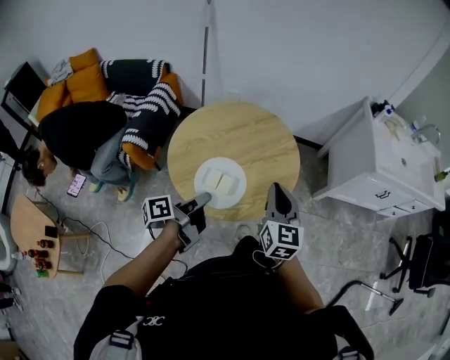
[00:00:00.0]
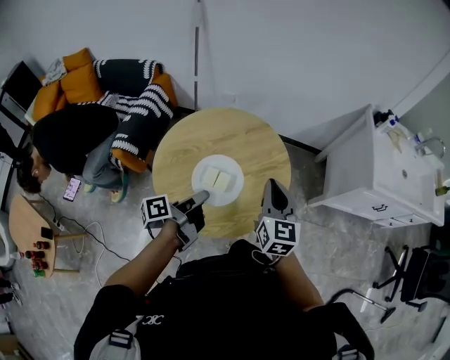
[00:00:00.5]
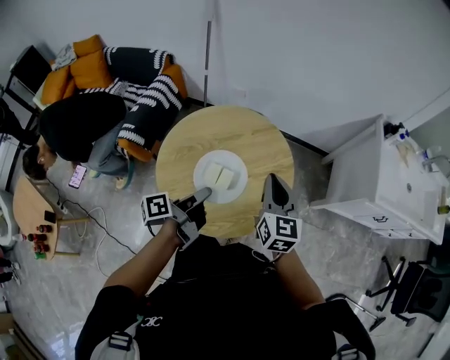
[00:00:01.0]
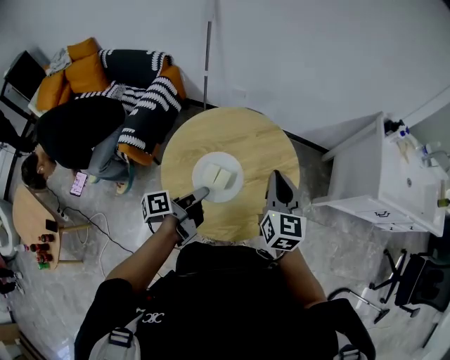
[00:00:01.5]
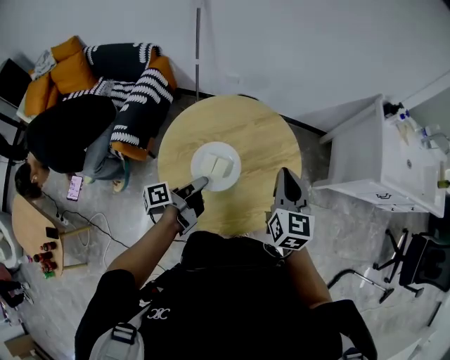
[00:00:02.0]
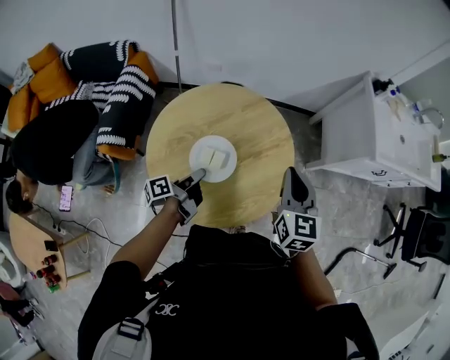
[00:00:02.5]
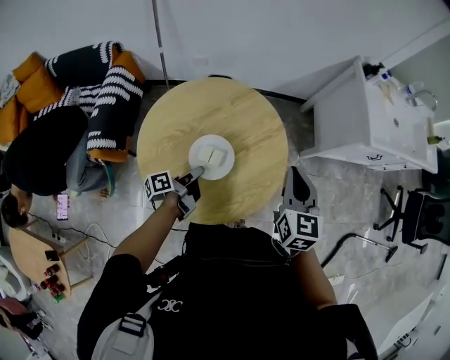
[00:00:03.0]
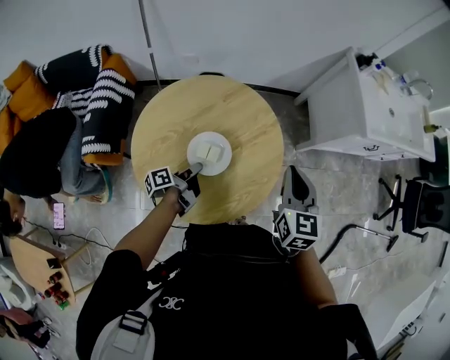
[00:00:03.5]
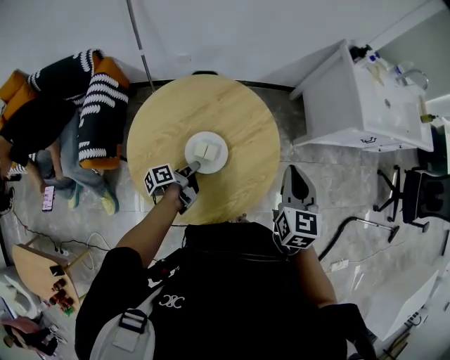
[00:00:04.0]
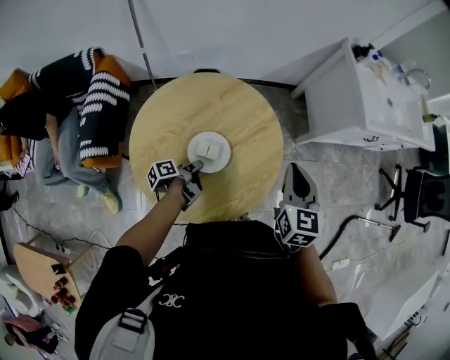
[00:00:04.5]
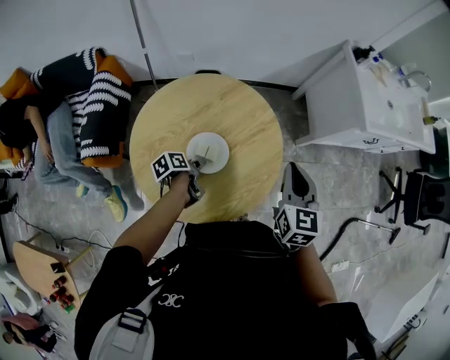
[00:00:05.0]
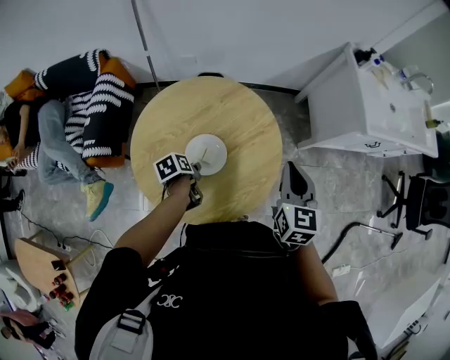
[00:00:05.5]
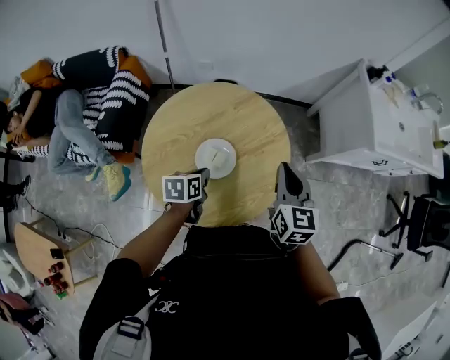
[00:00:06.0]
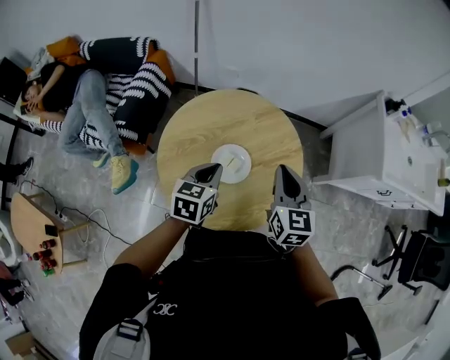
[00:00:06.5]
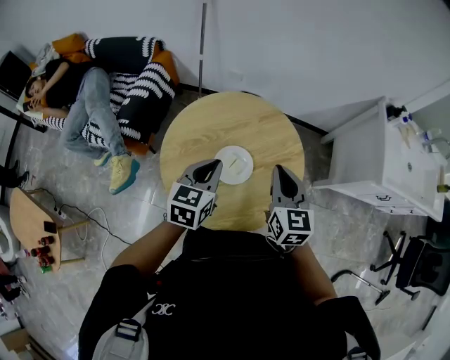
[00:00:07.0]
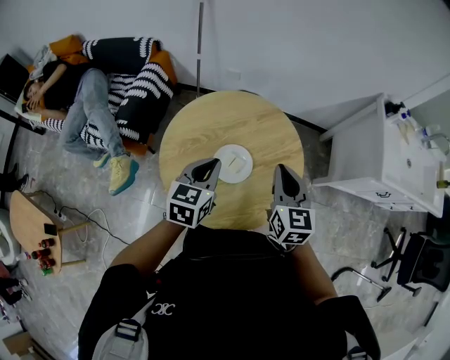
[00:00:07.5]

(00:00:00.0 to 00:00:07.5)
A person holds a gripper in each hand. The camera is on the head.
00:00:00.0 - 00:00:02.0: The right gripper ends up some 15 cm from where it was.
00:00:02.0 - 00:00:04.0: The right gripper changes place by roughly 10 cm.
00:00:05.5 - 00:00:07.5: The right gripper ends up roughly 10 cm from where it was.

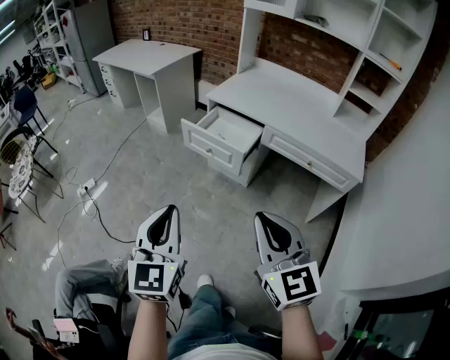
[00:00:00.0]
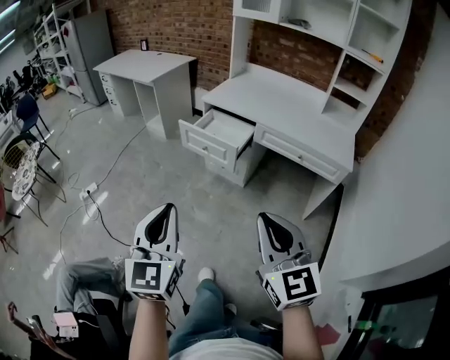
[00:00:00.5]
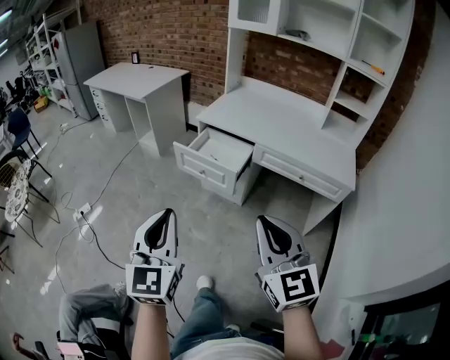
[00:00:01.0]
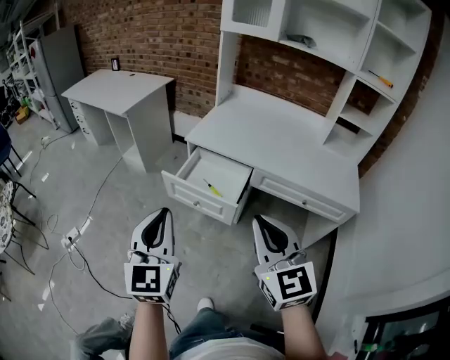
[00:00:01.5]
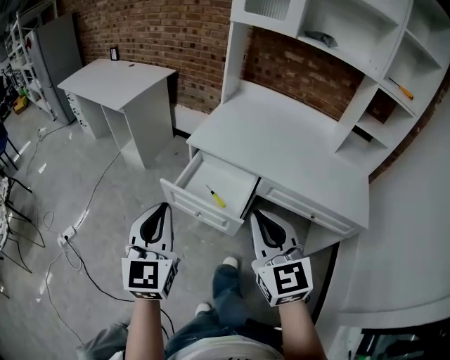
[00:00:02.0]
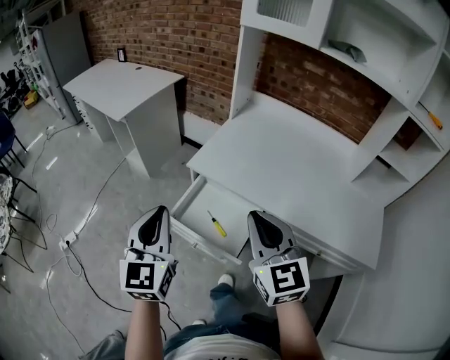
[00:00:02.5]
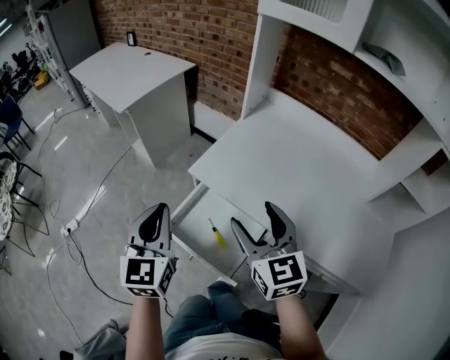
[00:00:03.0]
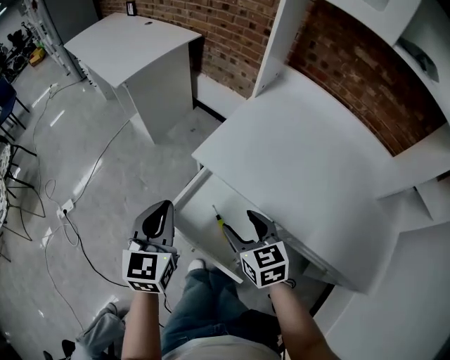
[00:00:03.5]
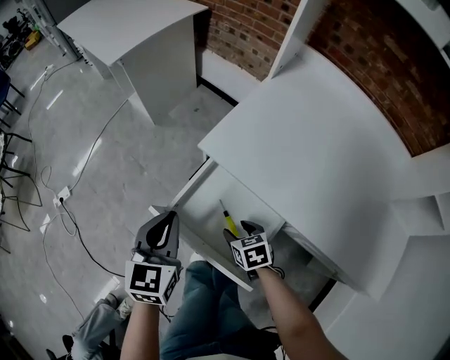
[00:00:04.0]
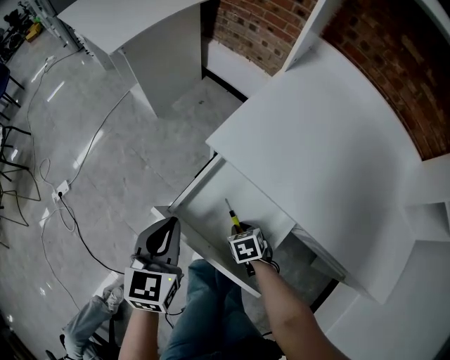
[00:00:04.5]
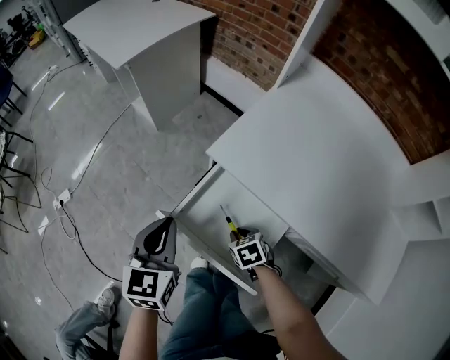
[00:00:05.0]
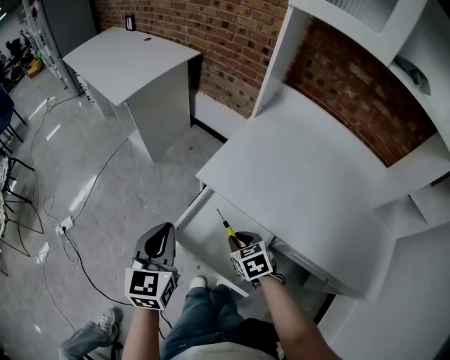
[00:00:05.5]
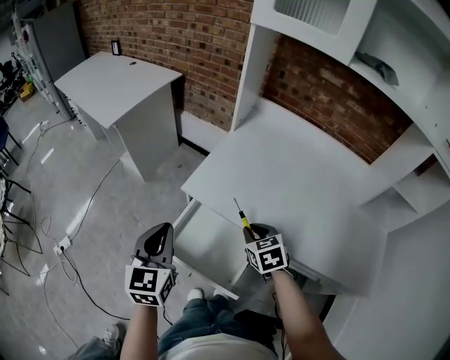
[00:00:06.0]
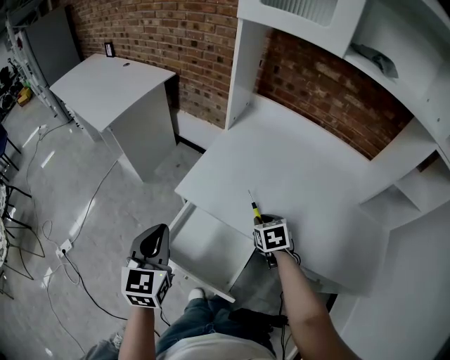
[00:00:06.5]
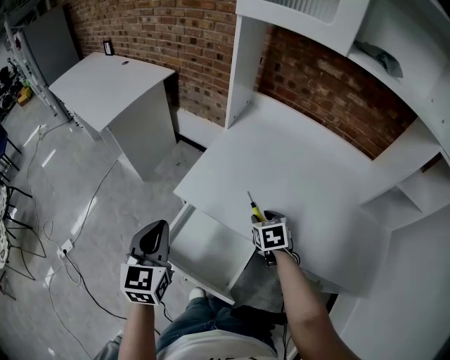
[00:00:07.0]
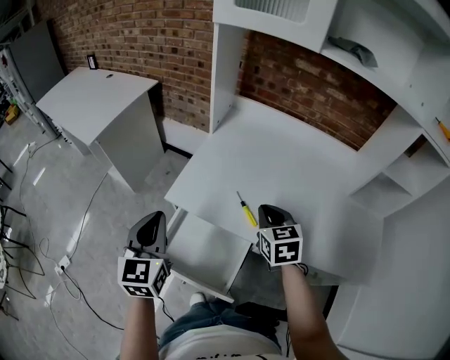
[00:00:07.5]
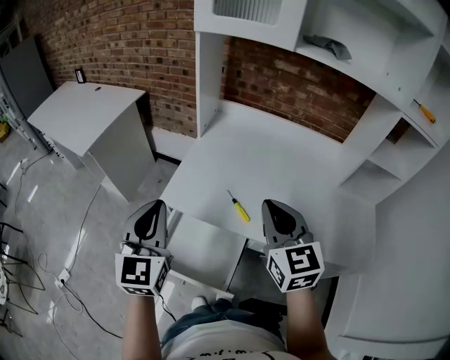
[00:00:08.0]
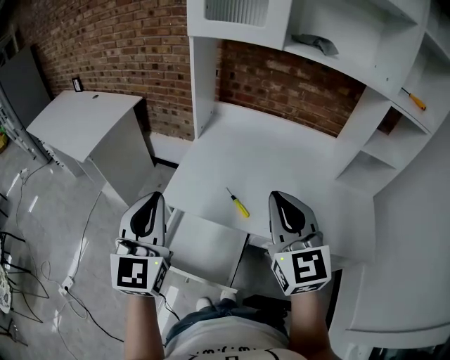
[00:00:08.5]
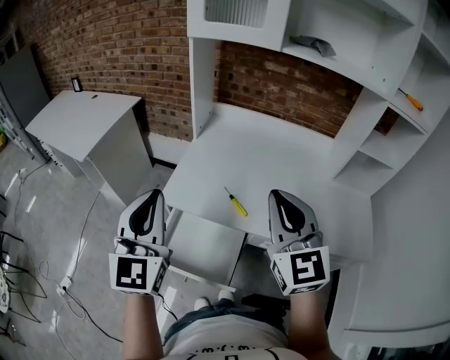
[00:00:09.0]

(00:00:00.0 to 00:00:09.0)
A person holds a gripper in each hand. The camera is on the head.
00:00:00.0 - 00:00:02.0: Both grippers travel together forward, roughly 35 cm.
00:00:02.0 - 00:00:04.5: The left gripper travels forward and downward by about 35 cm, and changes its angle by approximately 30 degrees. Meanwhile the right gripper travels downward and forward by about 60 cm, tilts its fingers some 60 degrees downward, and opens, then closes once more.
00:00:04.5 - 00:00:07.0: The left gripper is displaced upward and to the right by approximately 15 cm. The right gripper travels upward, to the right and forward by roughly 30 cm, and rotates roughly 30 degrees.
00:00:07.0 - 00:00:09.0: The left gripper goes about 15 cm upward, and turns by roughly 30 degrees, while the right gripper travels upward and backward by roughly 35 cm, angles its fingers upward, by about 50 degrees, and closes up.

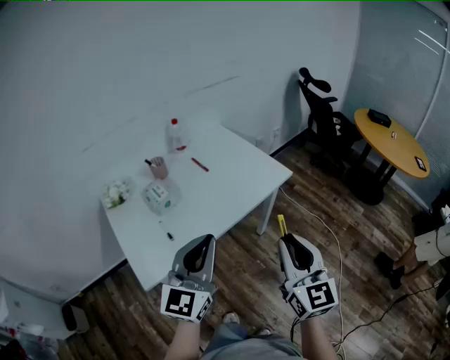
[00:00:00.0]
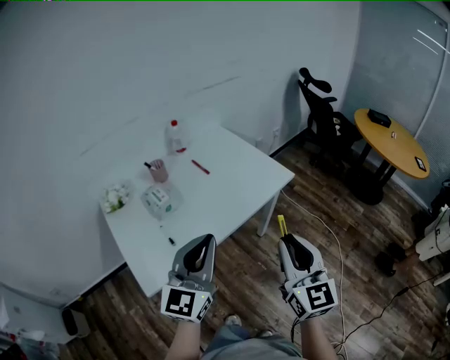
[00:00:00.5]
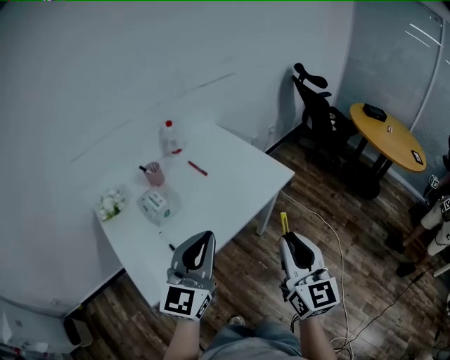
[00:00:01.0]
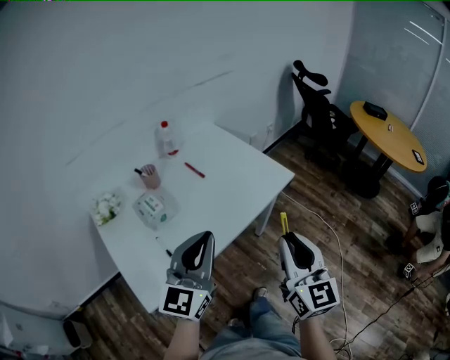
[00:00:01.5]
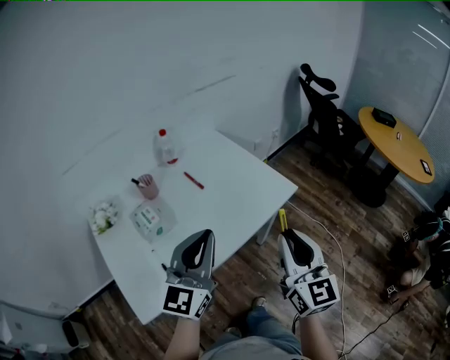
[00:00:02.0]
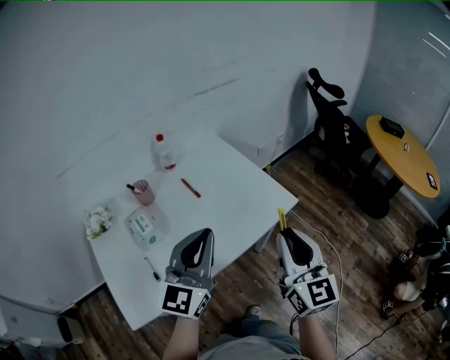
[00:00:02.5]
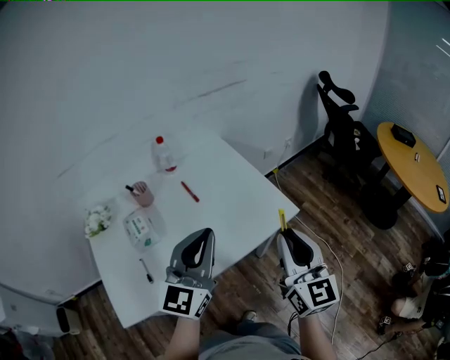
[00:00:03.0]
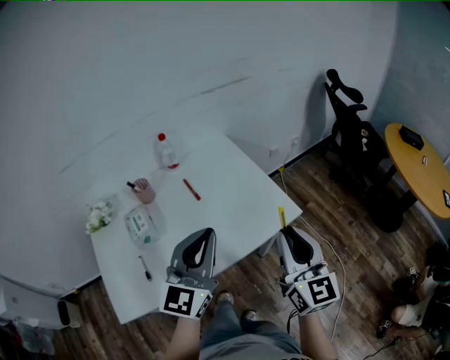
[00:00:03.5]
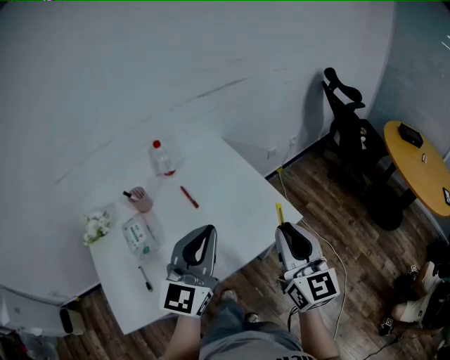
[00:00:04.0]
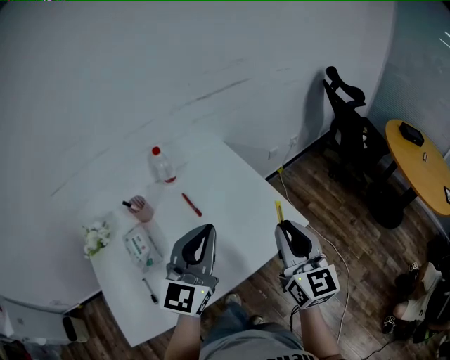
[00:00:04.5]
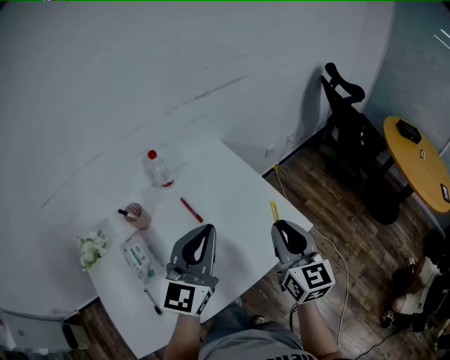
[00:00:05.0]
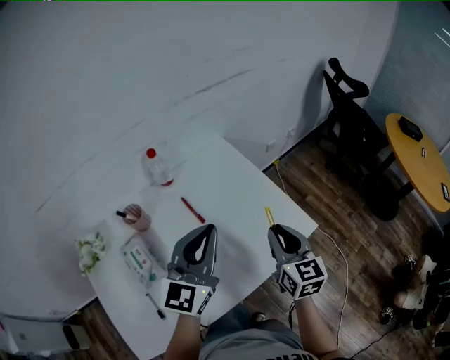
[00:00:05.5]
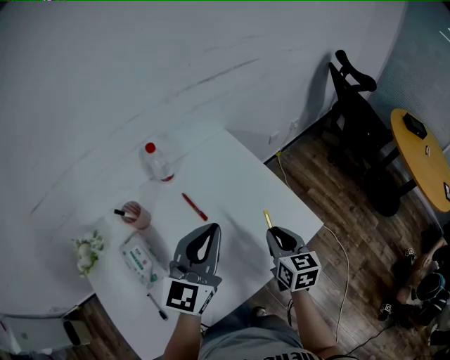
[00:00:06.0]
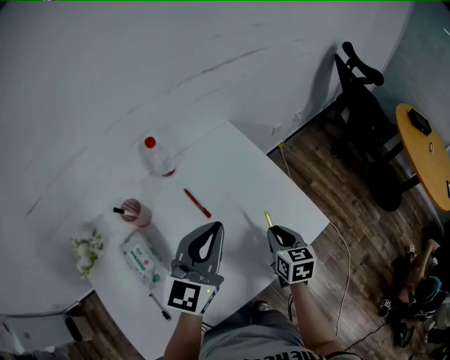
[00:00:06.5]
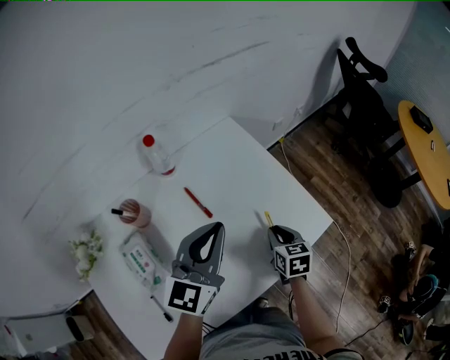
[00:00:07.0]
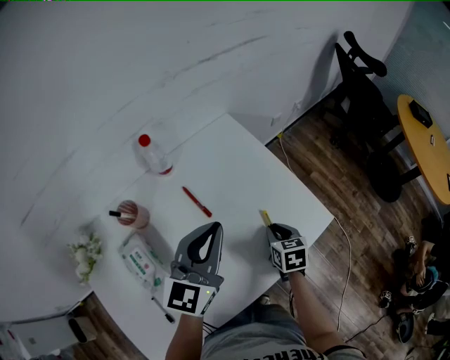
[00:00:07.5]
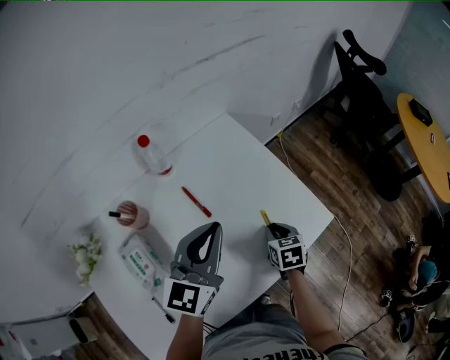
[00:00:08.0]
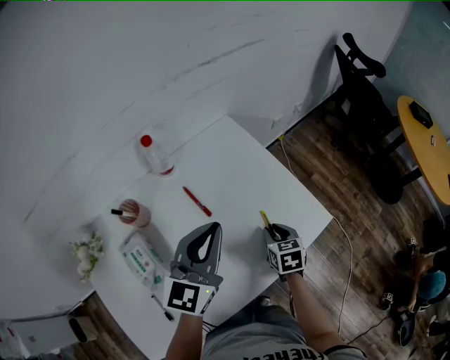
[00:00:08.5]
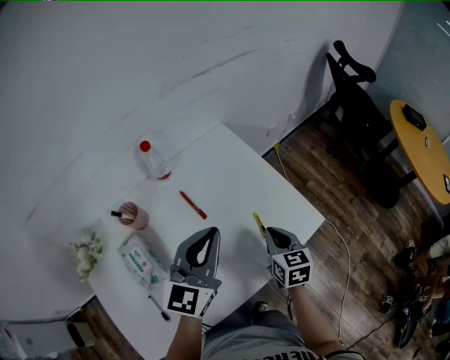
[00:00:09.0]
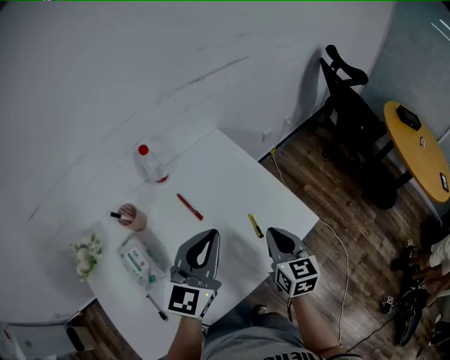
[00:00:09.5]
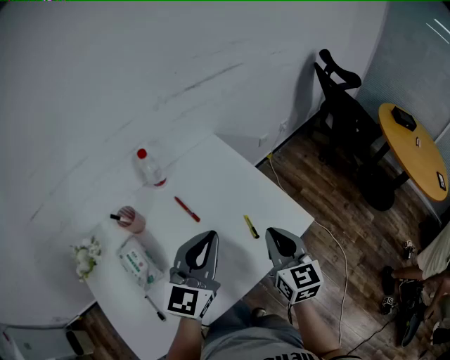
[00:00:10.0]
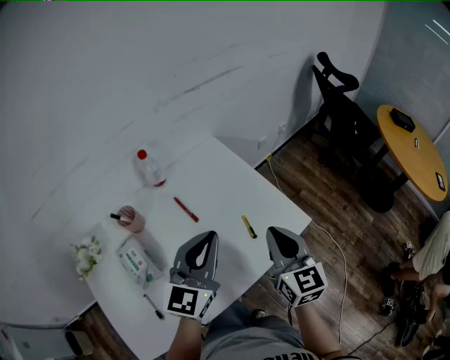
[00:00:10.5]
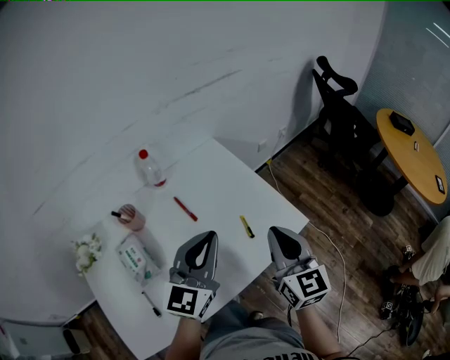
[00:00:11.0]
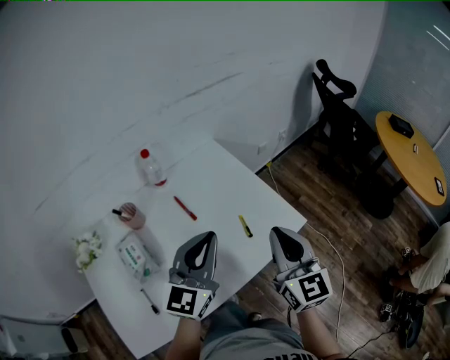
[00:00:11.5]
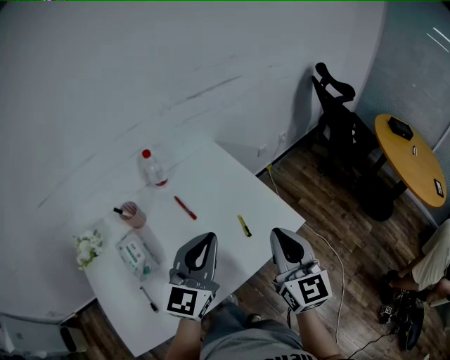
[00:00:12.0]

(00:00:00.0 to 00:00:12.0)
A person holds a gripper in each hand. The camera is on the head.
00:00:00.0 - 00:00:02.0: Both grippers move forward, roughly 15 cm.
00:00:02.0 - 00:00:04.0: The left gripper moves forward and to the right, roughly 15 cm. Meanwhile the right gripper is displaced forward by some 15 cm.
00:00:04.0 - 00:00:06.0: The left gripper travels forward, to the left and downward by approximately 15 cm. The right gripper shifts roughly 25 cm downward, forward and to the left, and angles its fingers downward, by some 30 degrees.
00:00:06.0 - 00:00:08.0: The right gripper shifts roughly 10 cm downward, and turns by some 20 degrees. The left gripper shifts by roughly 5 cm.
00:00:08.0 - 00:00:10.0: The left gripper is displaced backward by some 5 cm; the right gripper travels upward by roughly 20 cm, and tips its fingers upward by approximately 40 degrees.
00:00:10.0 - 00:00:12.0: The right gripper shifts some 10 cm upward and backward; the left gripper moves some 5 cm.
